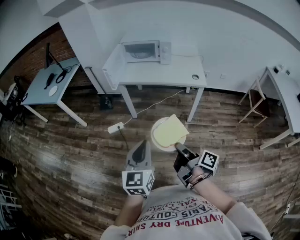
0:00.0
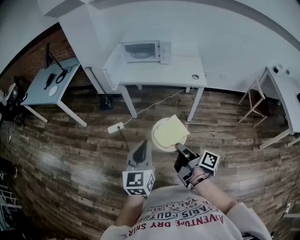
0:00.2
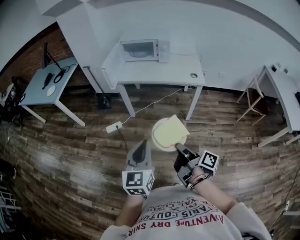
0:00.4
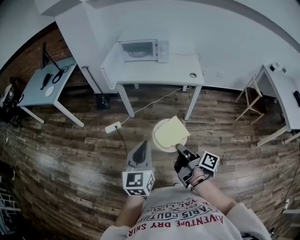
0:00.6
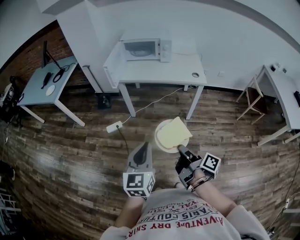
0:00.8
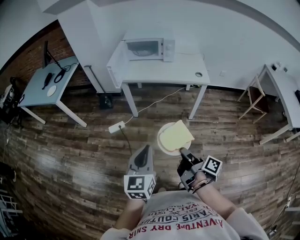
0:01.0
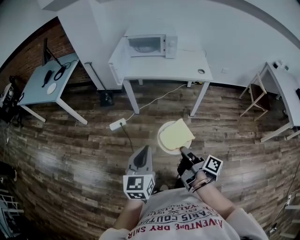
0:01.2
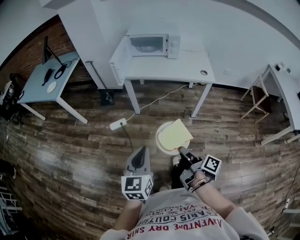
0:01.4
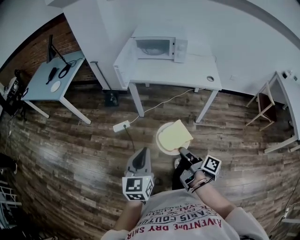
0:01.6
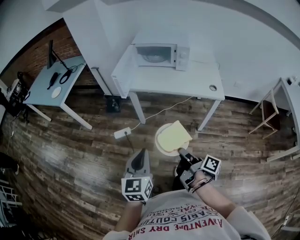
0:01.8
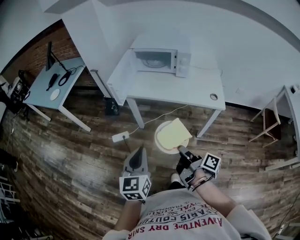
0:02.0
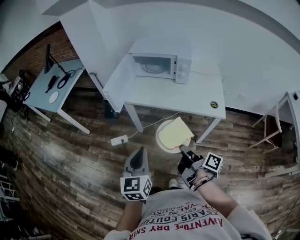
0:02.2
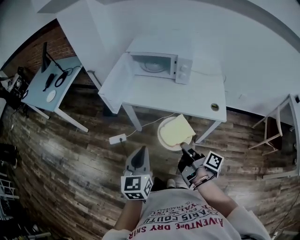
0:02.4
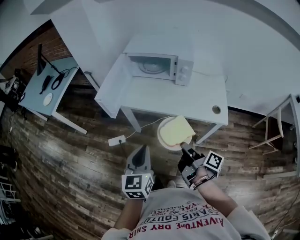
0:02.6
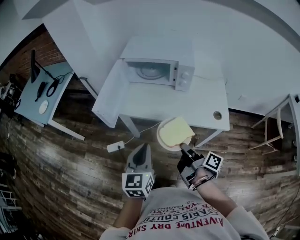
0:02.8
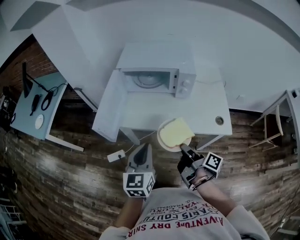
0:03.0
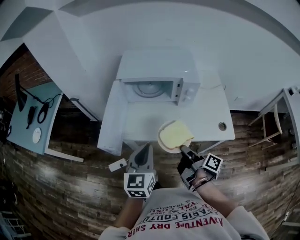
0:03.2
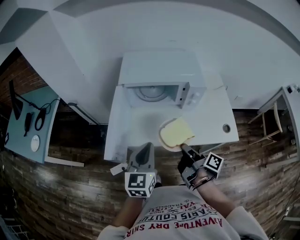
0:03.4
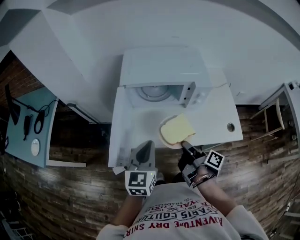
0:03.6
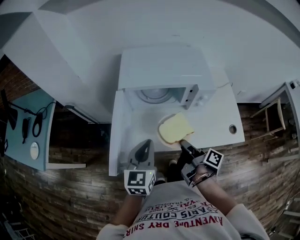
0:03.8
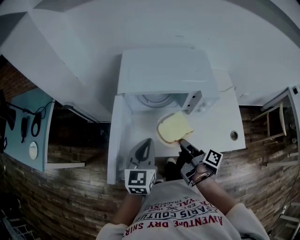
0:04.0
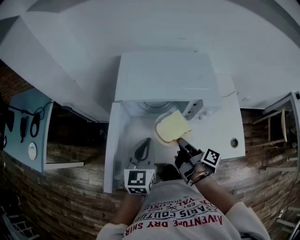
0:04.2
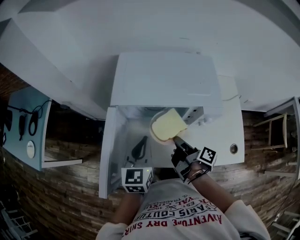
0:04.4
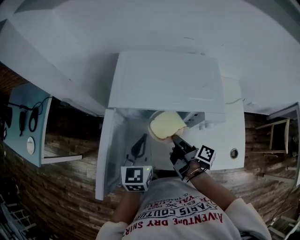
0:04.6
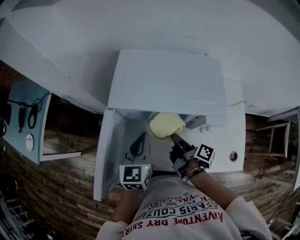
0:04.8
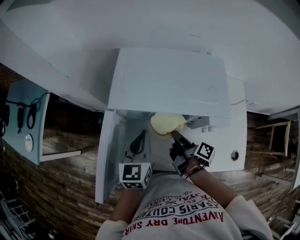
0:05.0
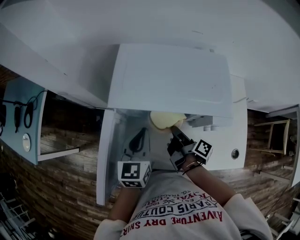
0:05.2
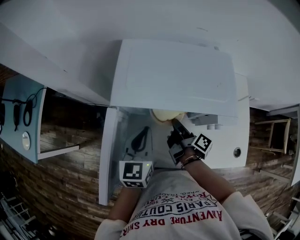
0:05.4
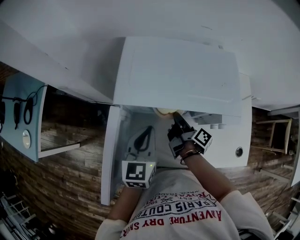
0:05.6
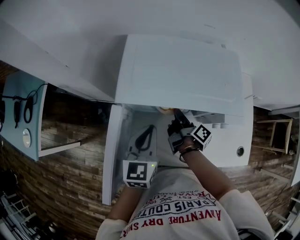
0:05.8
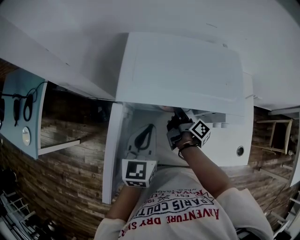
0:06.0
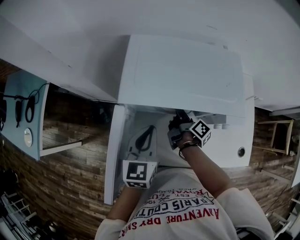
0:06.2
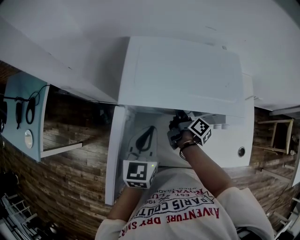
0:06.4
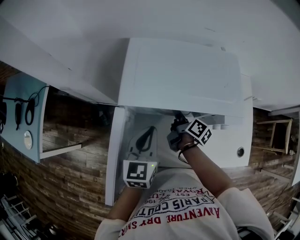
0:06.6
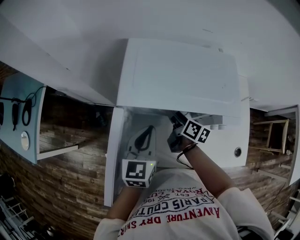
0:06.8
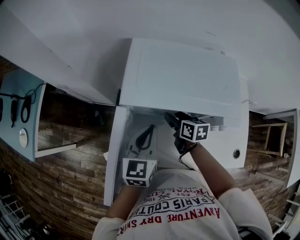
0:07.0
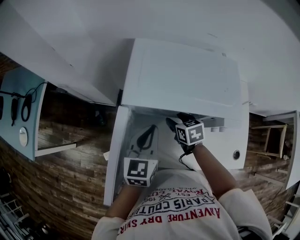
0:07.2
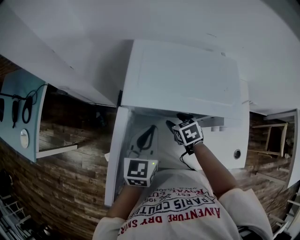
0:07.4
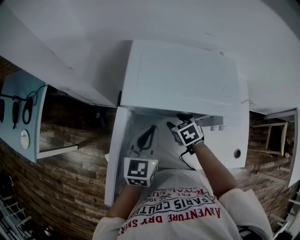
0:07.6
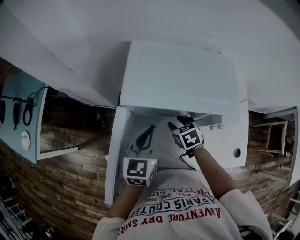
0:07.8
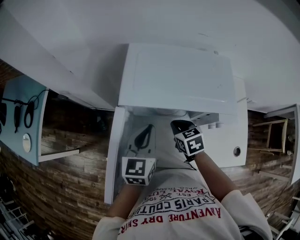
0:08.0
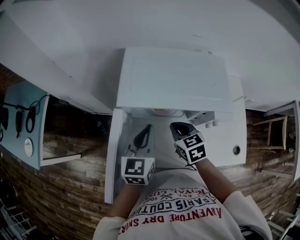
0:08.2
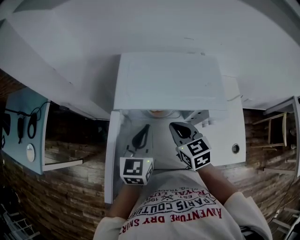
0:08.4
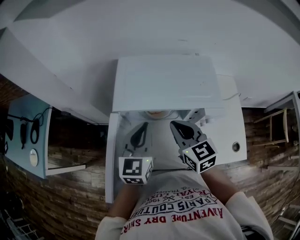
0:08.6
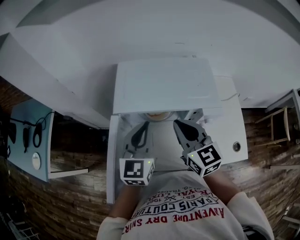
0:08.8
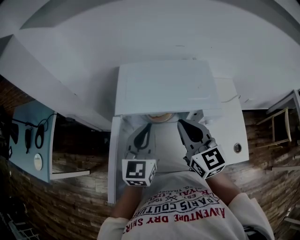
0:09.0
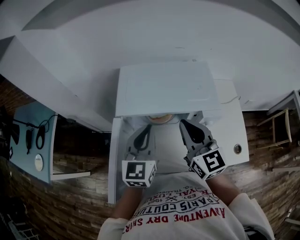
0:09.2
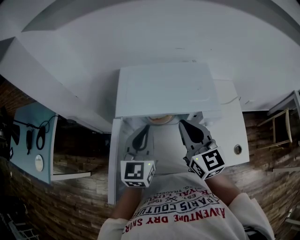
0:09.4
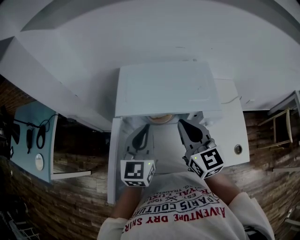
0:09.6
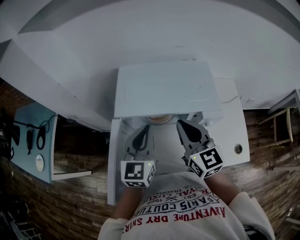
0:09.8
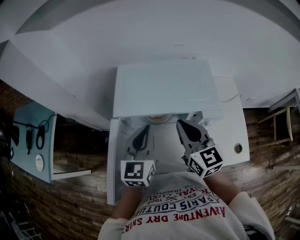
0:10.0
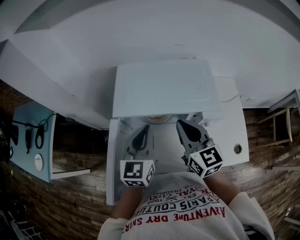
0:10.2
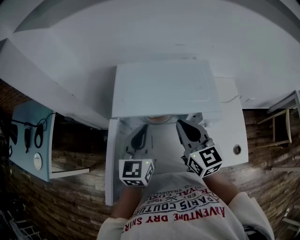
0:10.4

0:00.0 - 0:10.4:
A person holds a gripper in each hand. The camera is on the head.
0:00.0 - 0:01.4: The left gripper changes place by roughly 10 cm.
0:01.4 - 0:03.0: The left gripper ends up about 50 cm from where it was.
0:03.0 - 0:04.4: The left gripper ends up approximately 30 cm from where it was.
0:04.4 - 0:06.0: The left gripper changes place by approximately 5 cm.
0:07.4 - 0:09.0: The left gripper goes roughly 10 cm upward.

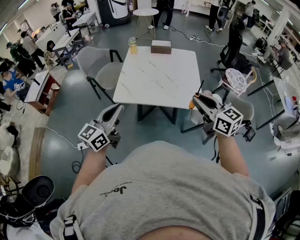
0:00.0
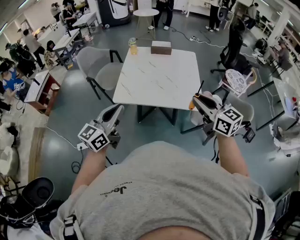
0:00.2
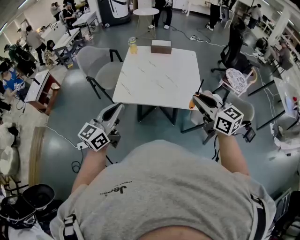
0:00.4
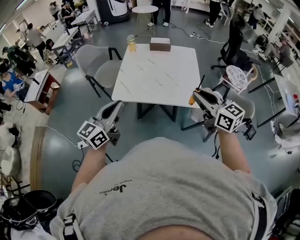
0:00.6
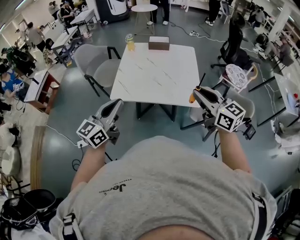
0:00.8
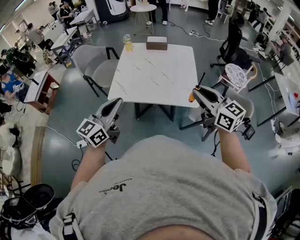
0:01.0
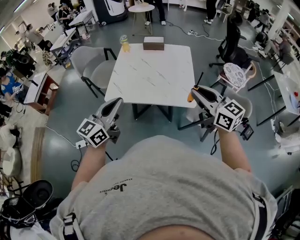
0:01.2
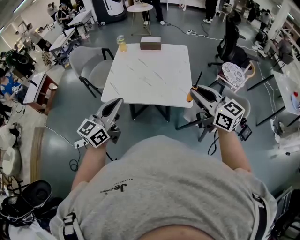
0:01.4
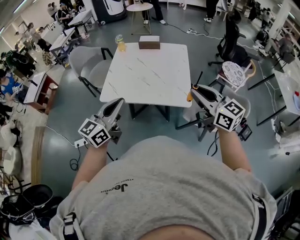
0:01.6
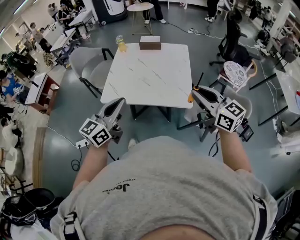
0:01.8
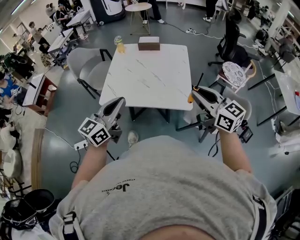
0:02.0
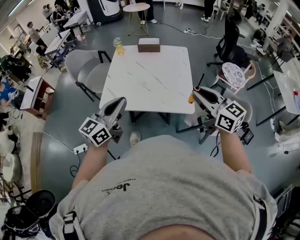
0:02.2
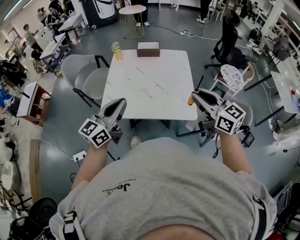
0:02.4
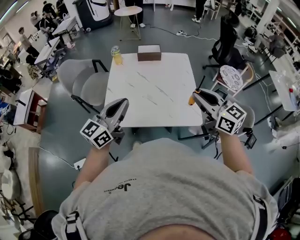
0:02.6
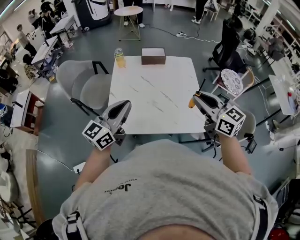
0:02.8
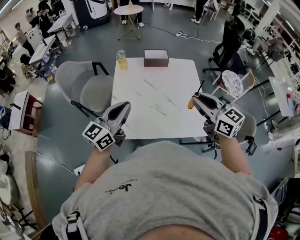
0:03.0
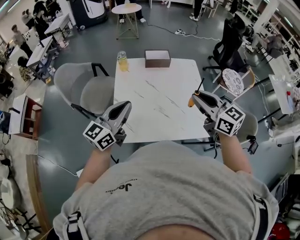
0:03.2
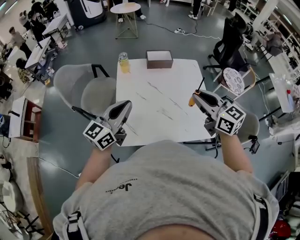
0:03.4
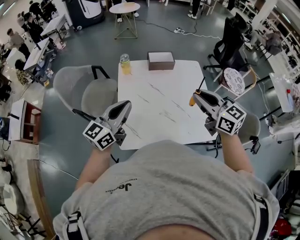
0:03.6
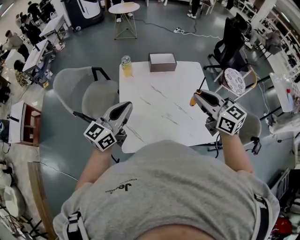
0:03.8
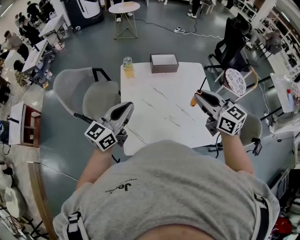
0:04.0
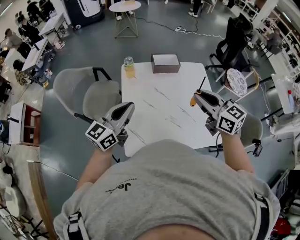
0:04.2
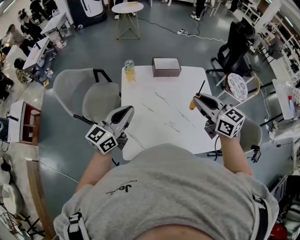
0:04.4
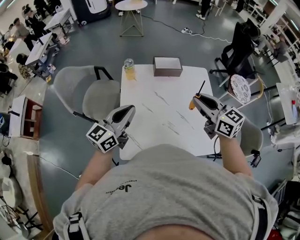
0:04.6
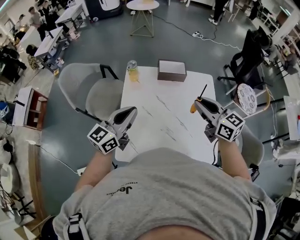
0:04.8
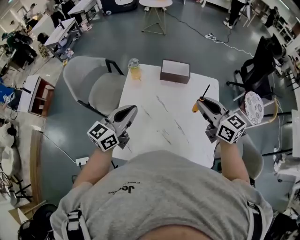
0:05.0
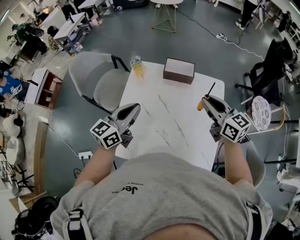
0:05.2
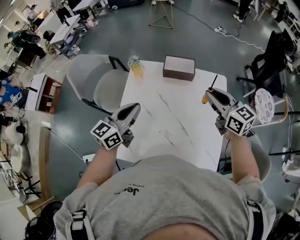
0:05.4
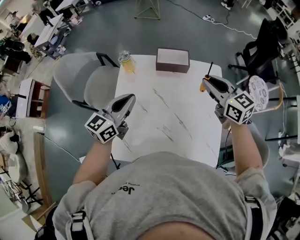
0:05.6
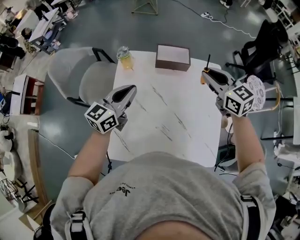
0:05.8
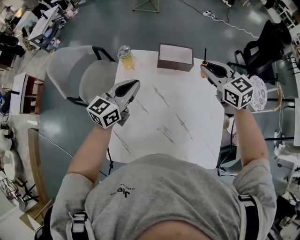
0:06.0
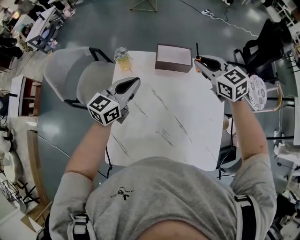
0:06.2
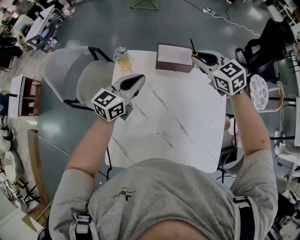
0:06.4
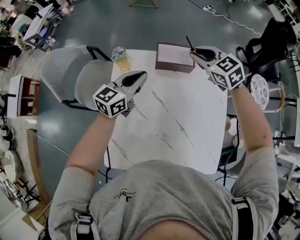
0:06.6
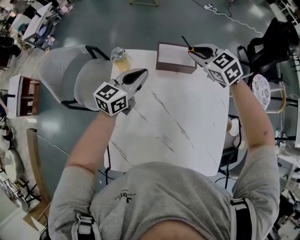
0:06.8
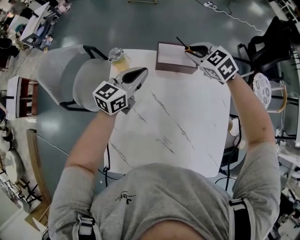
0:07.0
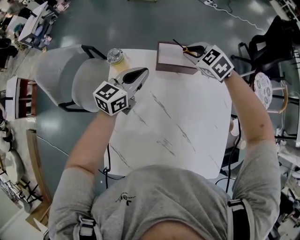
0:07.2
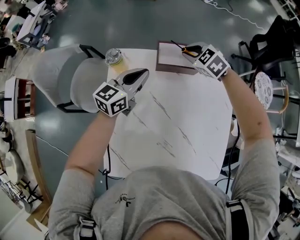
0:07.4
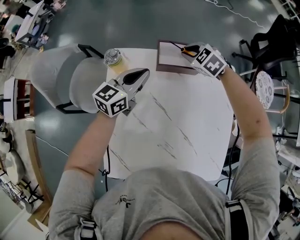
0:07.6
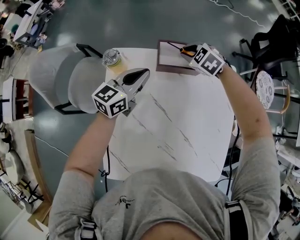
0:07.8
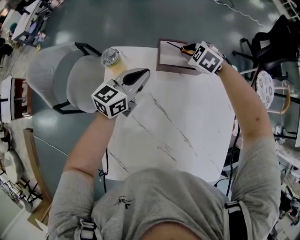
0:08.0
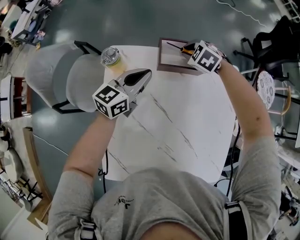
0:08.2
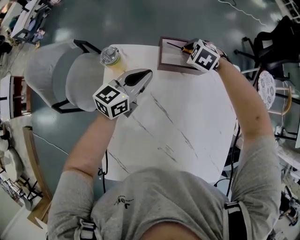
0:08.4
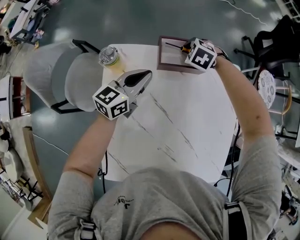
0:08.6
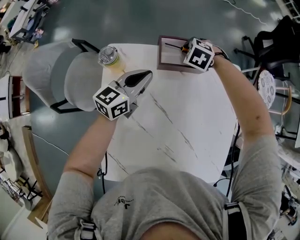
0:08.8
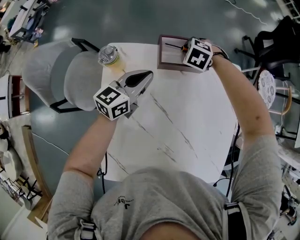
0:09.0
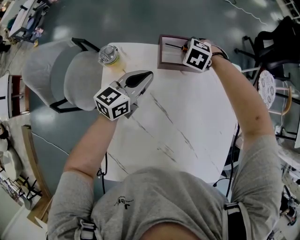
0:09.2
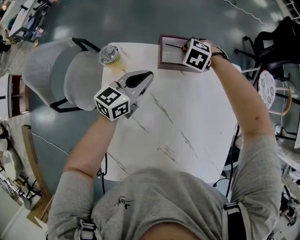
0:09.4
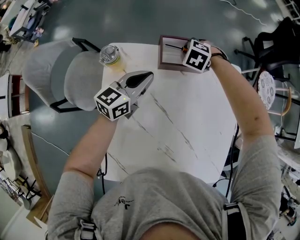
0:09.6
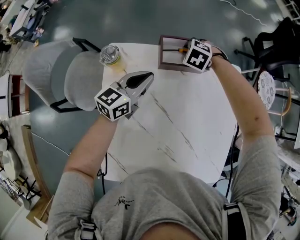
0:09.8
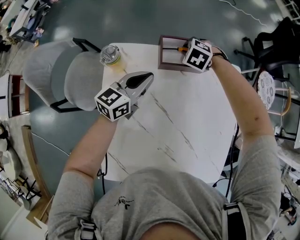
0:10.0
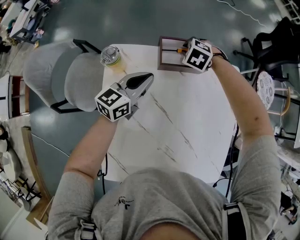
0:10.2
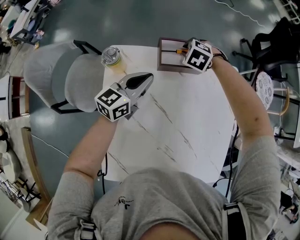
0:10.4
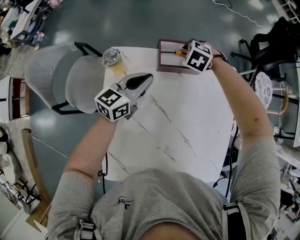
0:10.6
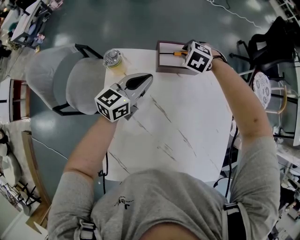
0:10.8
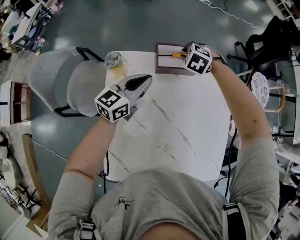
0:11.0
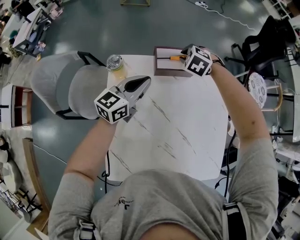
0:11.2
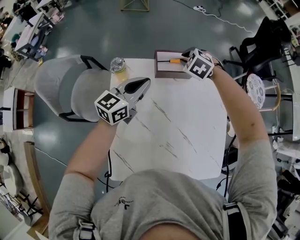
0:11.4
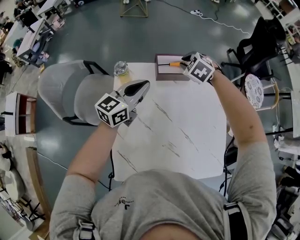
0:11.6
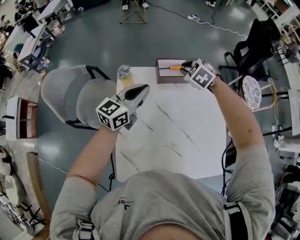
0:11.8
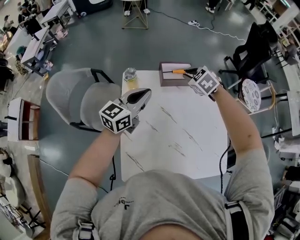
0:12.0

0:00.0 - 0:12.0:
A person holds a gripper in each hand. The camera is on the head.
0:00.0 - 0:01.6: Both grippers move to the right, roughly 10 cm.
0:01.6 - 0:03.0: The two grippers go about 25 cm forward and to the left.
0:03.0 - 0:04.4: Both grippers move forward and to the left, about 15 cm.
0:04.4 - 0:06.0: The right gripper travels forward by some 25 cm. The left gripper shifts about 20 cm forward, to the right and downward.
0:06.0 - 0:07.6: The right gripper heads downward and forward, covering approximately 25 cm, and rotates roughly 40 degrees; the left gripper moves forward and downward, some 15 cm.
0:07.6 - 0:09.0: The right gripper is displaced downward by approximately 5 cm, and rotates approximately 20 degrees.
0:09.0 - 0:10.4: The grippers move only a little.
0:10.4 - 0:12.0: The two grippers go some 20 cm upward and backward. The right gripper swivels about 30 degrees.

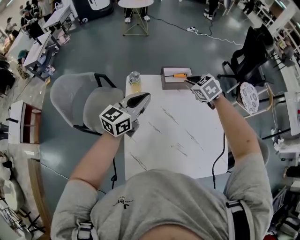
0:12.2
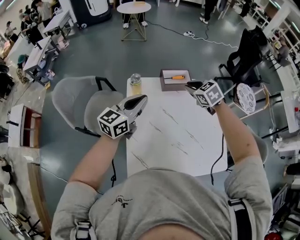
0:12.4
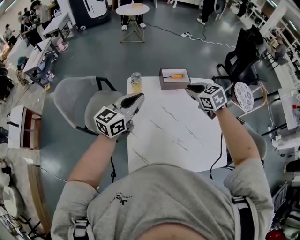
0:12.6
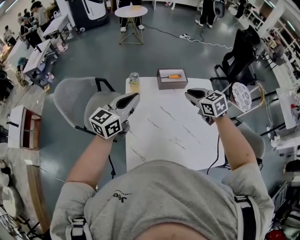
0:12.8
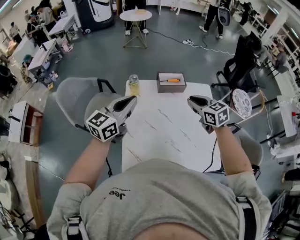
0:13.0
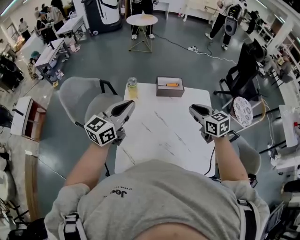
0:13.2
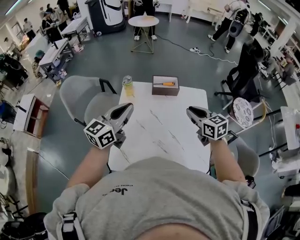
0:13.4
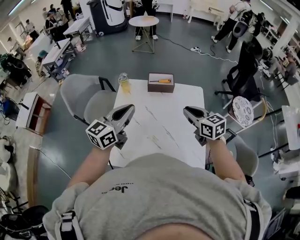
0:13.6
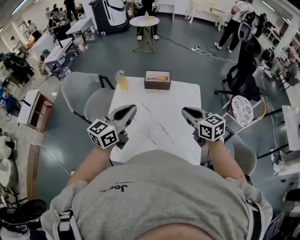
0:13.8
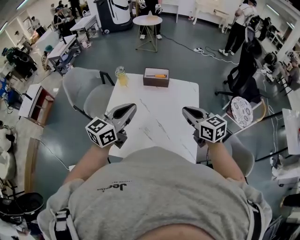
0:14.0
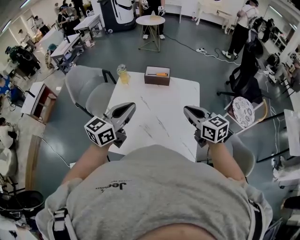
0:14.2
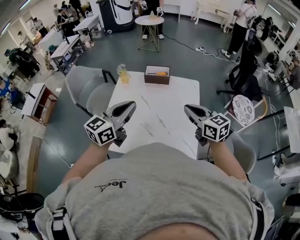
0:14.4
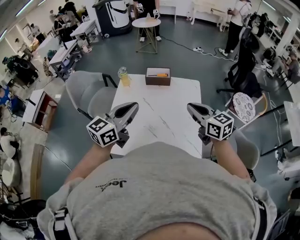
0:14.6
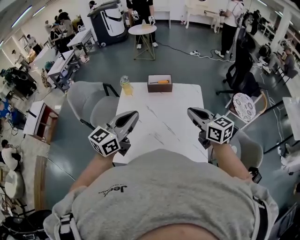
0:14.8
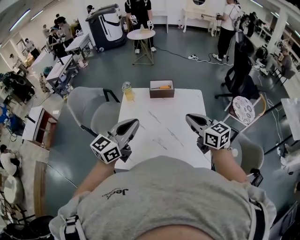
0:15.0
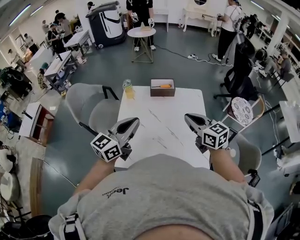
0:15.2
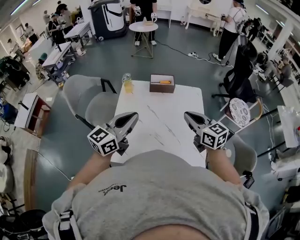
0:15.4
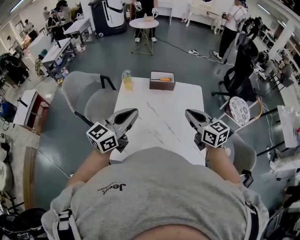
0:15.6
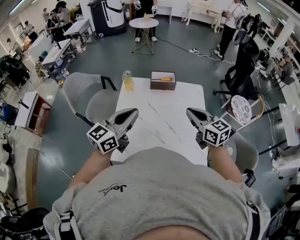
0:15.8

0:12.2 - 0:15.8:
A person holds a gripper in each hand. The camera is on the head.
0:12.2 - 0:14.0: The right gripper heads backward and to the right, covering roughly 35 cm, and points its fingers about 30 degrees further upward. Meanwhile the left gripper travels backward, to the right and upward by approximately 30 cm.
0:14.0 - 0:15.8: Both grippers travel together to the left, approximately 10 cm.
